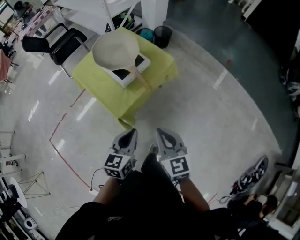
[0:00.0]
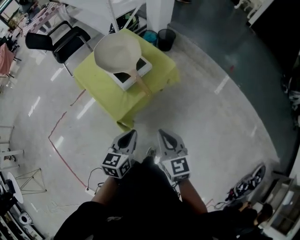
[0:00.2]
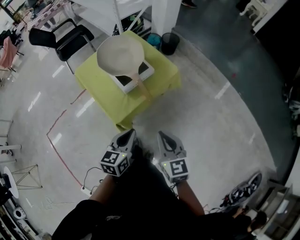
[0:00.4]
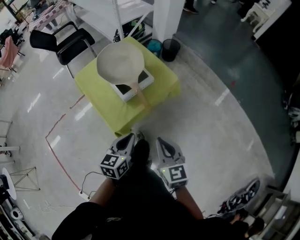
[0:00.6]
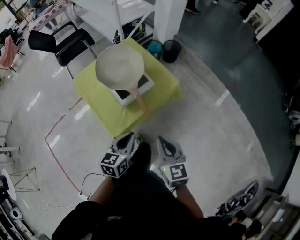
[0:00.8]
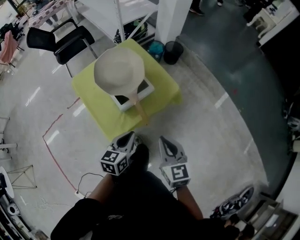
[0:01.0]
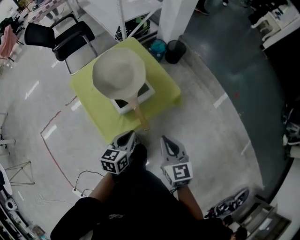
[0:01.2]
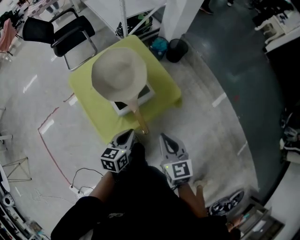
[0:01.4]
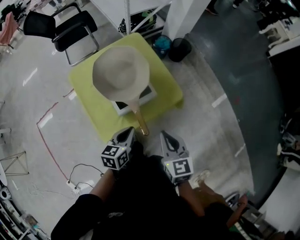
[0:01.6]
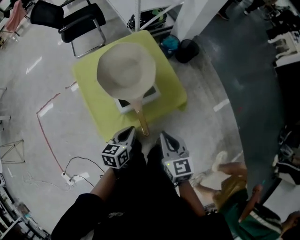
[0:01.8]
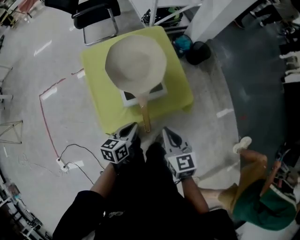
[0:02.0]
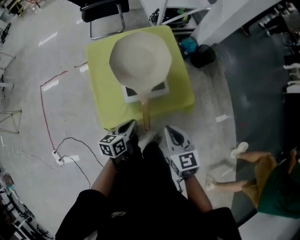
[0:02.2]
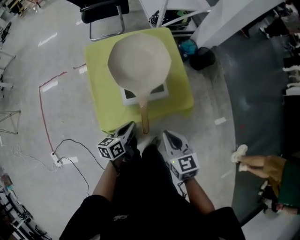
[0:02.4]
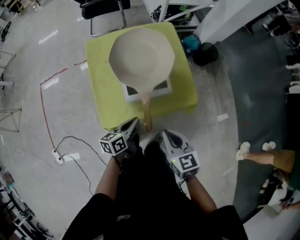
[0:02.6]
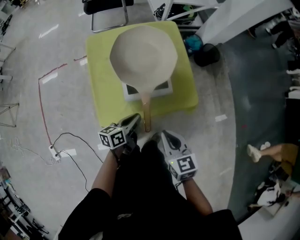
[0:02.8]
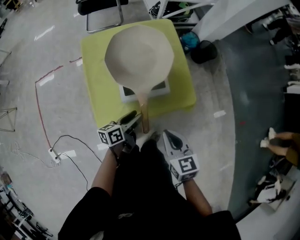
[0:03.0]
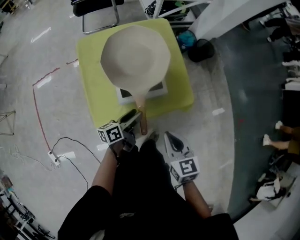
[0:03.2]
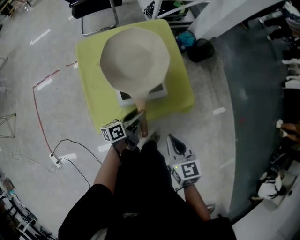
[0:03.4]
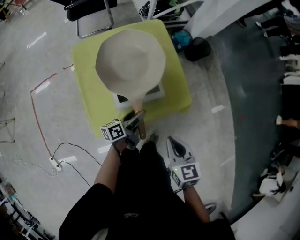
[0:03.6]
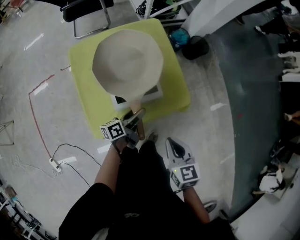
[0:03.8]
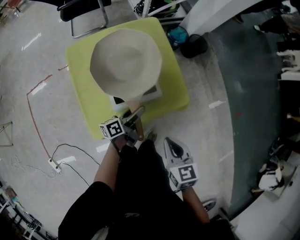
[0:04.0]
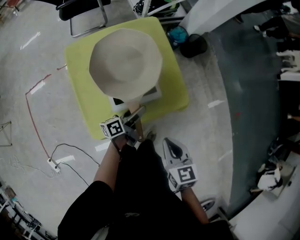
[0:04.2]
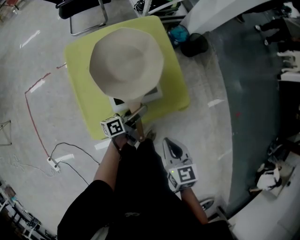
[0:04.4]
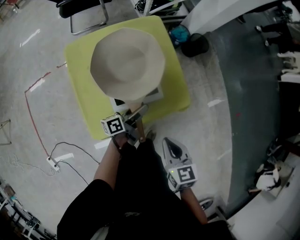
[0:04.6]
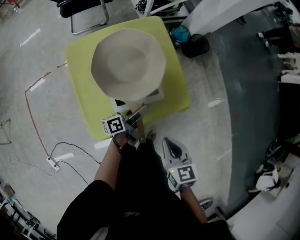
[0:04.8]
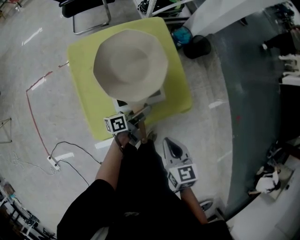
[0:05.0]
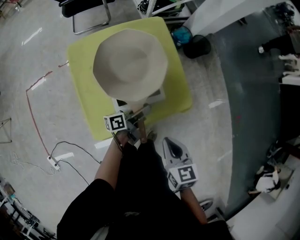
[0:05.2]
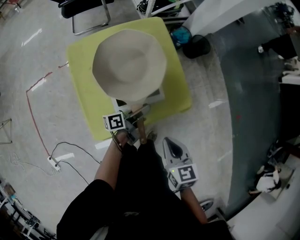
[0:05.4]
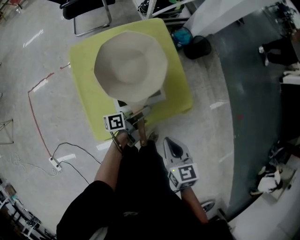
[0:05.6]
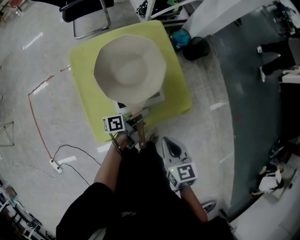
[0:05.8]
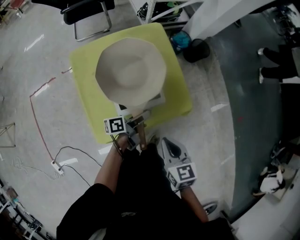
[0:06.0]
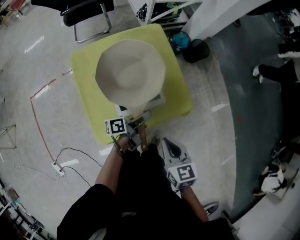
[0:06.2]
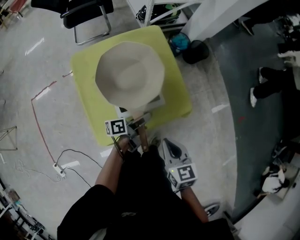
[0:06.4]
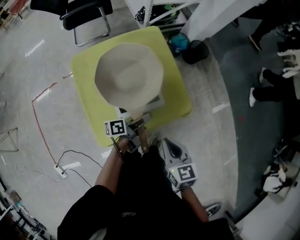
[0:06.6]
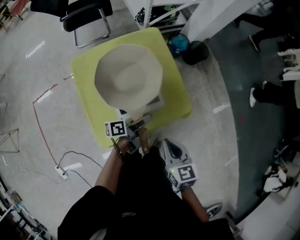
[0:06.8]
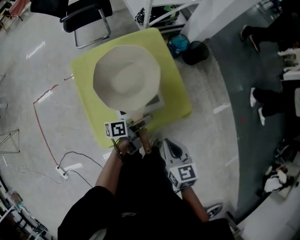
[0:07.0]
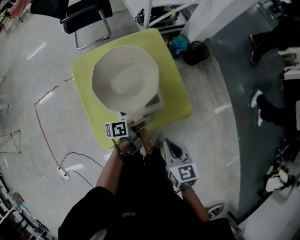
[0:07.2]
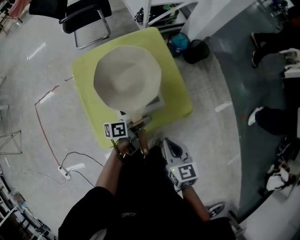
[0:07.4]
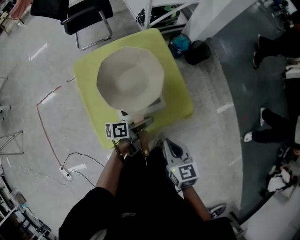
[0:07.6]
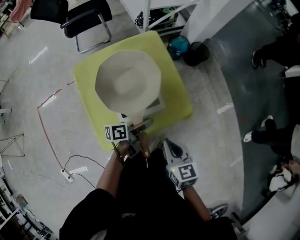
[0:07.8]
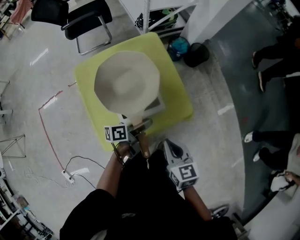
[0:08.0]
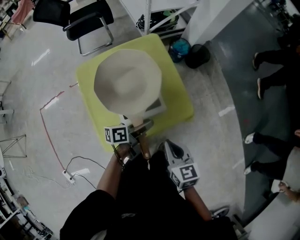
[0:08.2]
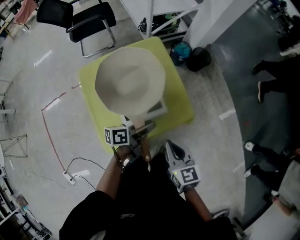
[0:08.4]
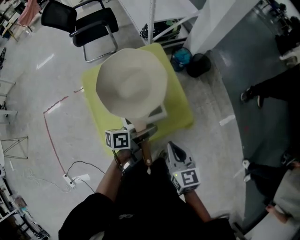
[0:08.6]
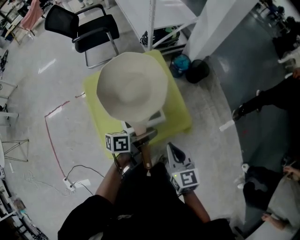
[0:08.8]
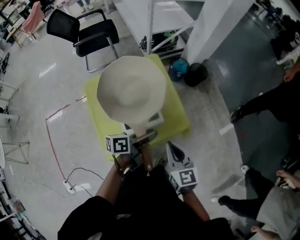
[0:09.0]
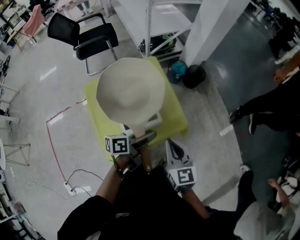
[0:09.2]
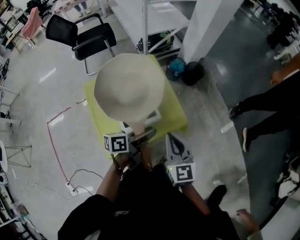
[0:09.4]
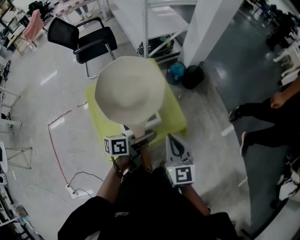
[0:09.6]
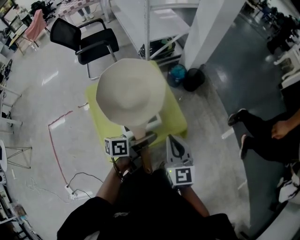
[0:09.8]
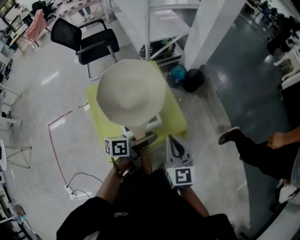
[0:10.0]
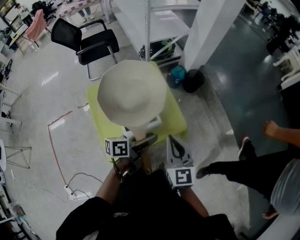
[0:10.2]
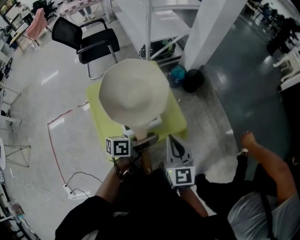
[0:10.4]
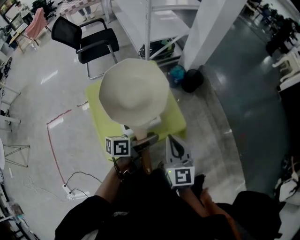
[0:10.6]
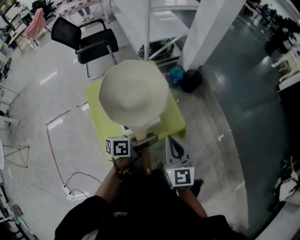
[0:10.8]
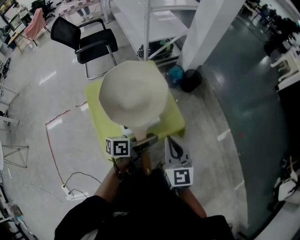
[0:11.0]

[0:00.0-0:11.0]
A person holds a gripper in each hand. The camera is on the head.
0:00.0 to 0:01.6: Both grippers move forward, approximately 25 cm. The left gripper swivels approximately 20 degrees.
0:01.6 to 0:03.2: The two grippers go some 10 cm downward. The left gripper turns by some 40 degrees, and opens.
0:03.2 to 0:04.8: The left gripper heads forward, covering about 10 cm.
0:04.8 to 0:06.2: The left gripper closes its fingers.
0:06.2 to 0:07.8: The grippers move only a little.
0:07.8 to 0:09.4: The grippers both shift upward by approximately 15 cm. The right gripper changes its angle by some 20 degrees.
0:09.4 to 0:11.0: The grippers make only small movements.

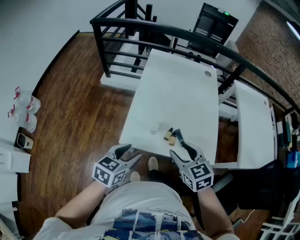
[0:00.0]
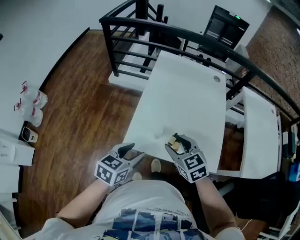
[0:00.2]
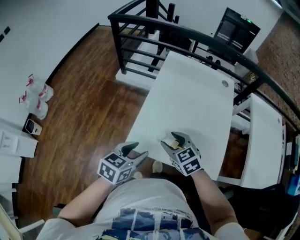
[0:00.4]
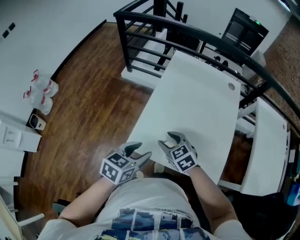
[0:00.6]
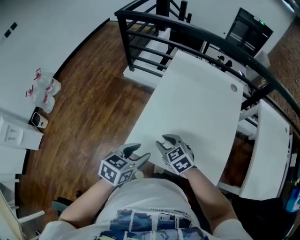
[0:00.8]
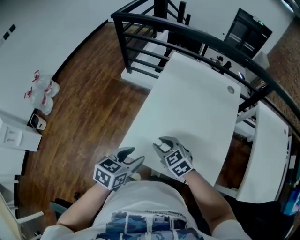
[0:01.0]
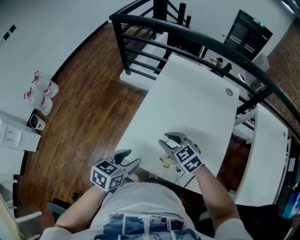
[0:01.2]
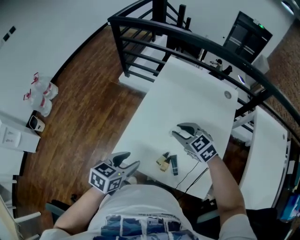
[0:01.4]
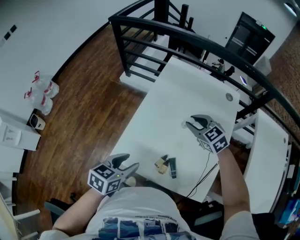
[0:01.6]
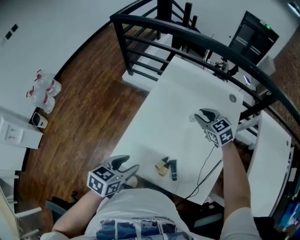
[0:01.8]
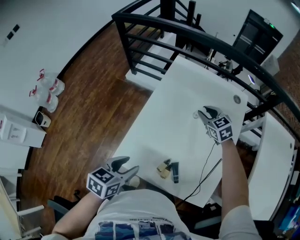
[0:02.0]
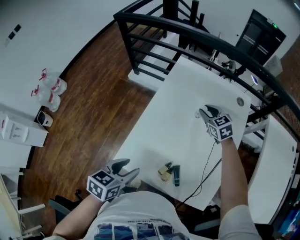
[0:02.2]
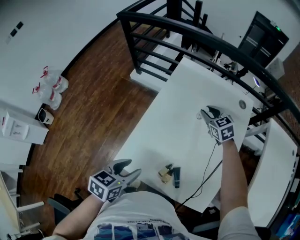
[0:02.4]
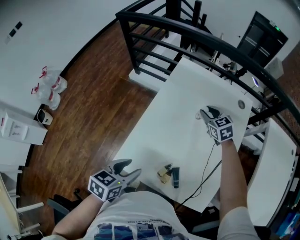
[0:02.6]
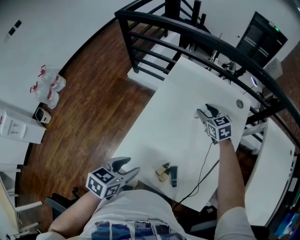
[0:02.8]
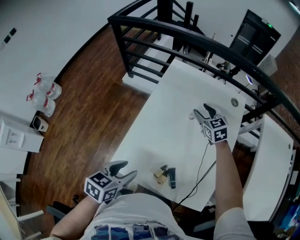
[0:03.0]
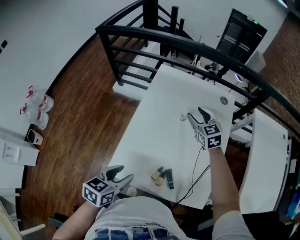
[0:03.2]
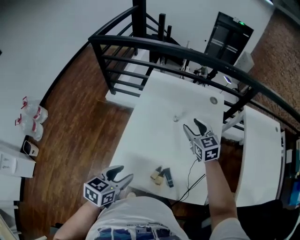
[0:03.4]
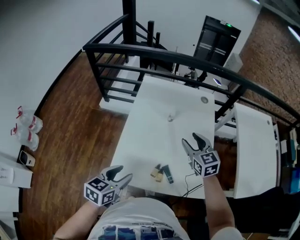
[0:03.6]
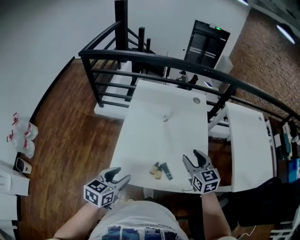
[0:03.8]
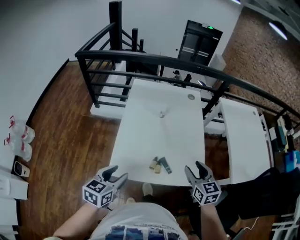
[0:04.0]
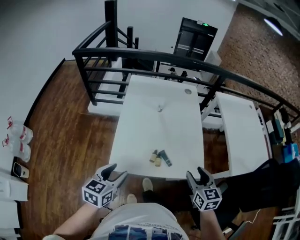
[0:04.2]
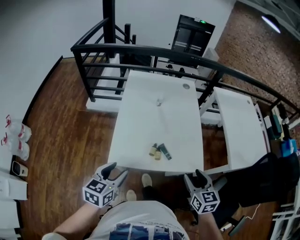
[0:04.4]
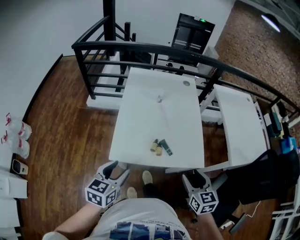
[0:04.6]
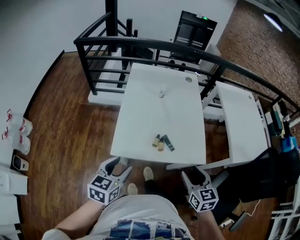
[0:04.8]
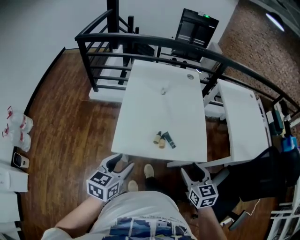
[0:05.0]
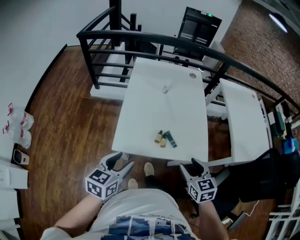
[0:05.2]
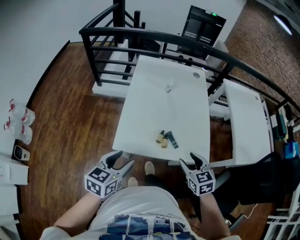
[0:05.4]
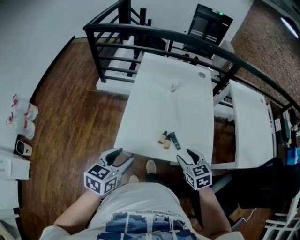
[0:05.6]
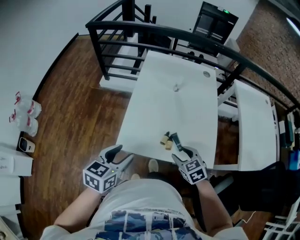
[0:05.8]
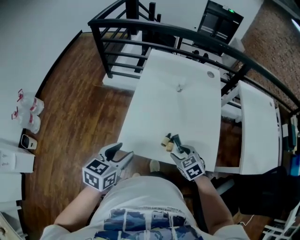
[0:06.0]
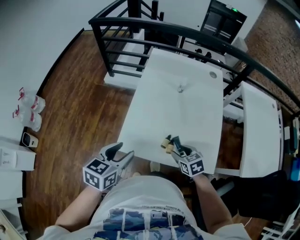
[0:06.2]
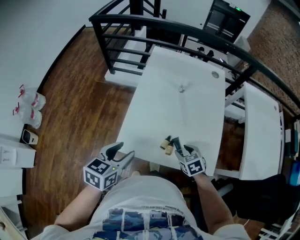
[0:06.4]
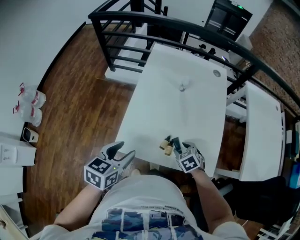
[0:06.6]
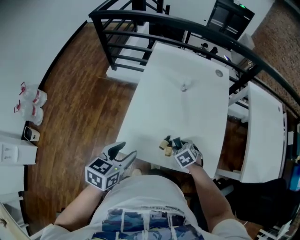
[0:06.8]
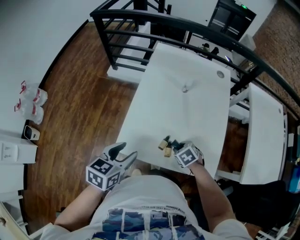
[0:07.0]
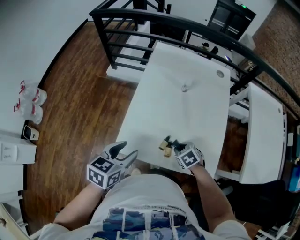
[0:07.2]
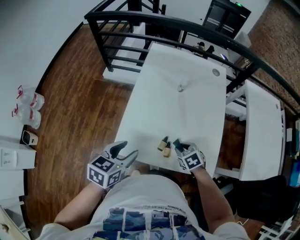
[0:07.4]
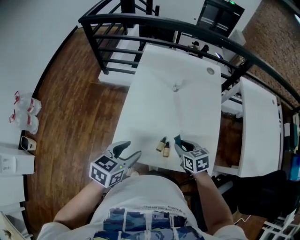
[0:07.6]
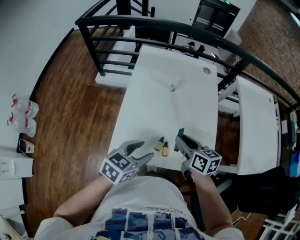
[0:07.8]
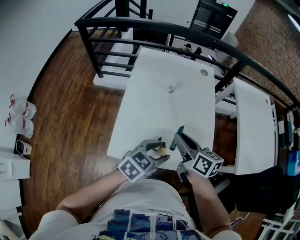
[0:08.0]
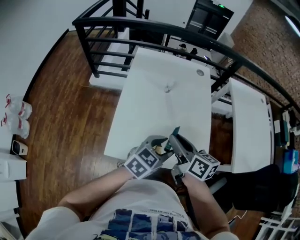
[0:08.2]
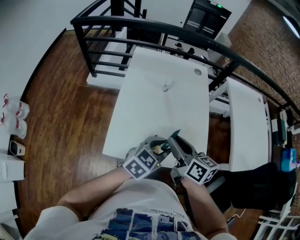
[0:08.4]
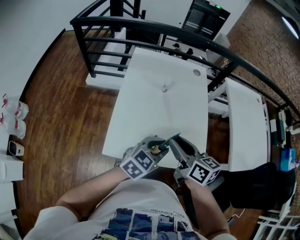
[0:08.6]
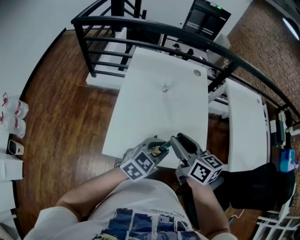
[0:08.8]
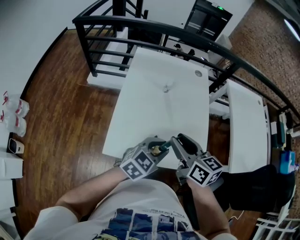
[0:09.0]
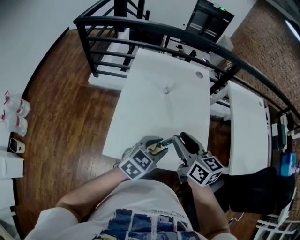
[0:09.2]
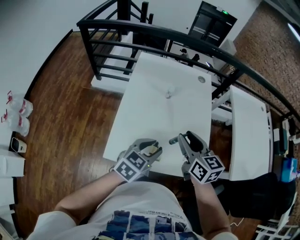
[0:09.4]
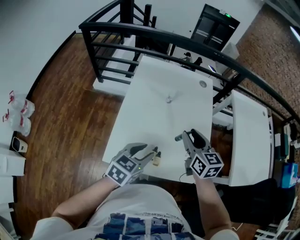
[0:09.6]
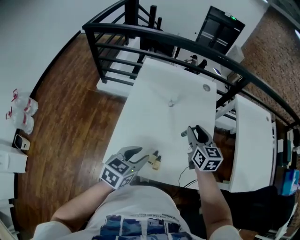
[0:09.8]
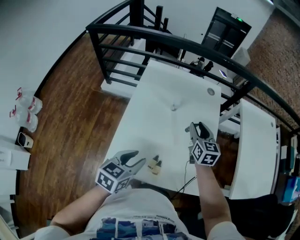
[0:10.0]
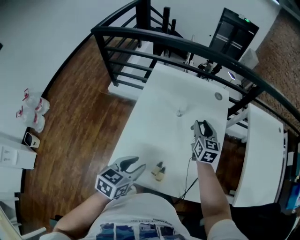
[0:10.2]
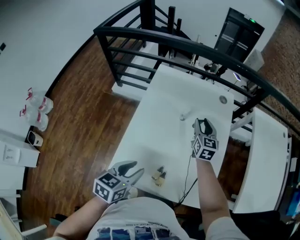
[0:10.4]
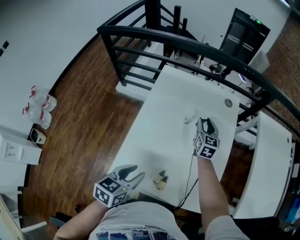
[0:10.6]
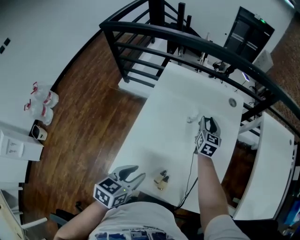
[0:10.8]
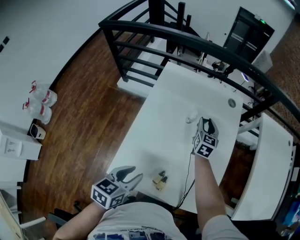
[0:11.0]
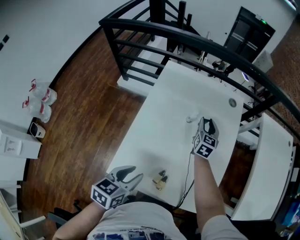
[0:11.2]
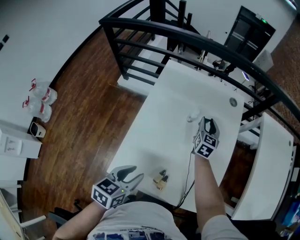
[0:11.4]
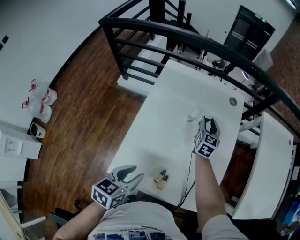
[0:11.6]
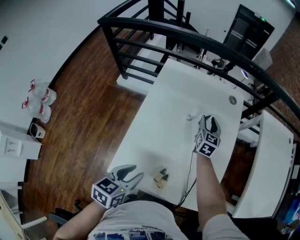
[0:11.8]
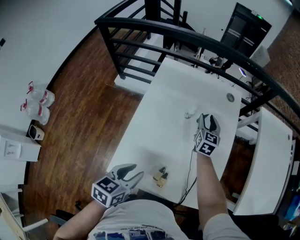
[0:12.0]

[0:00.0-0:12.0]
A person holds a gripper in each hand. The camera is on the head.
0:00.0 to 0:01.6: The right gripper heads forward and to the right, covering about 35 cm, swivels about 30 degrees, and closes. The left gripper moves forward and to the right, roughly 15 cm.
0:01.6 to 0:03.0: The right gripper goes approximately 15 cm forward, and opens.
0:03.0 to 0:04.4: The right gripper heads backward, covering approximately 50 cm, and swivels some 40 degrees. Meanwhile the left gripper moves backward, about 15 cm.
0:04.4 to 0:06.0: The left gripper moves some 5 cm; the right gripper shifts roughly 20 cm downward, to the left and forward, and turns by approximately 40 degrees.
0:06.0 to 0:07.6: The left gripper shifts about 10 cm forward and to the right. Meanwhile the right gripper moves forward, some 10 cm, moves approximately 10 cm downward and comes back, swivels approximately 20 degrees, and closes its fingers.
0:07.6 to 0:09.0: The left gripper travels to the right by some 15 cm, swivels approximately 30 degrees, and closes its fingers, while the right gripper is displaced upward by about 20 cm, and rotates roughly 30 degrees.
0:09.0 to 0:10.4: The right gripper travels forward by some 35 cm, and swivels approximately 30 degrees. The left gripper moves to the left and forward, approximately 10 cm, and changes its angle by about 40 degrees.
0:10.4 to 0:12.0: The right gripper travels downward by some 5 cm.

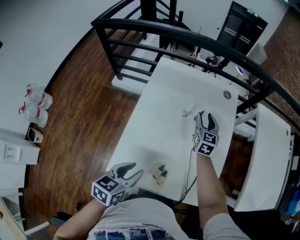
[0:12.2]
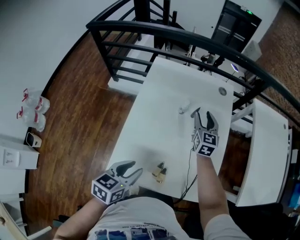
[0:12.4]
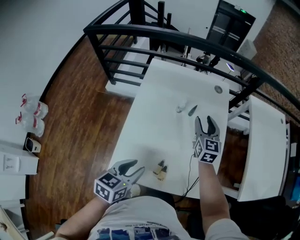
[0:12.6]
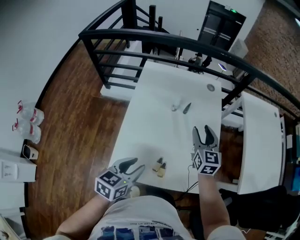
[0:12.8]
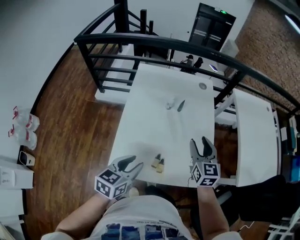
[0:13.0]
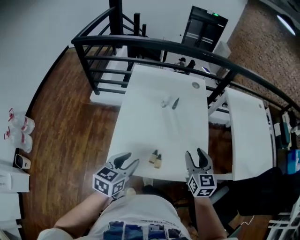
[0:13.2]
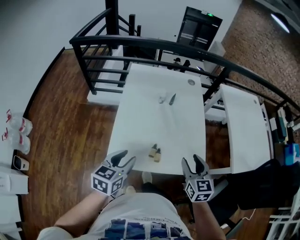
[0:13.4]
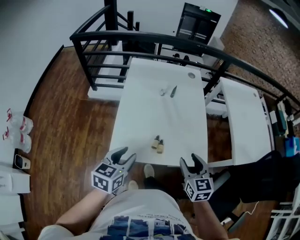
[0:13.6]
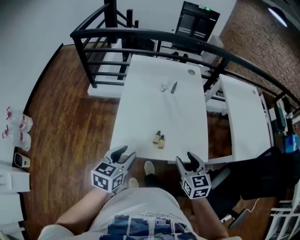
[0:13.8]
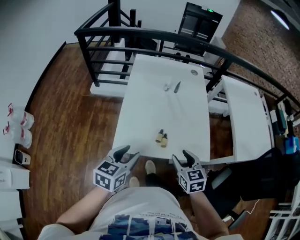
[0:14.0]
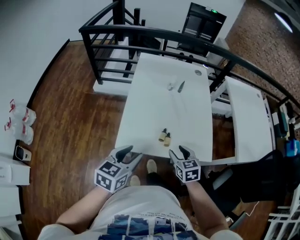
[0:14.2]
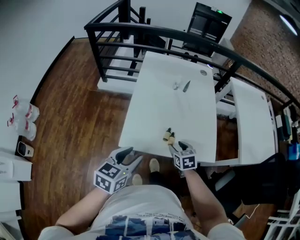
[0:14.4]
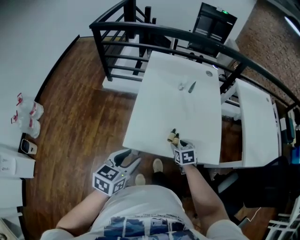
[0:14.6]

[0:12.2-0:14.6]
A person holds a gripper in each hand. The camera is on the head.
0:12.2 to 0:13.4: The right gripper moves backward, some 40 cm. Meanwhile the left gripper moves backward and upward, roughly 10 cm.
0:13.4 to 0:14.6: The right gripper shifts roughly 25 cm downward and to the left, and rotates approximately 30 degrees, while the left gripper is displaced backward by some 10 cm.
